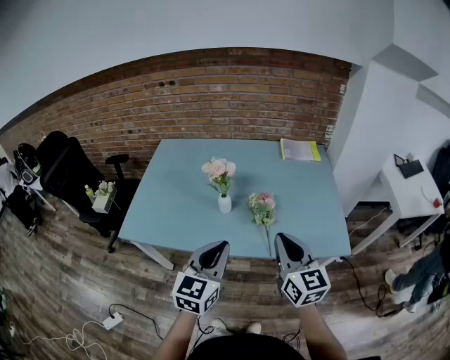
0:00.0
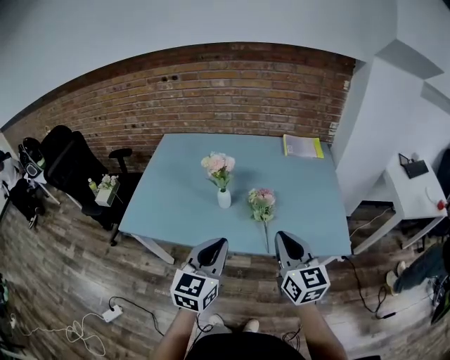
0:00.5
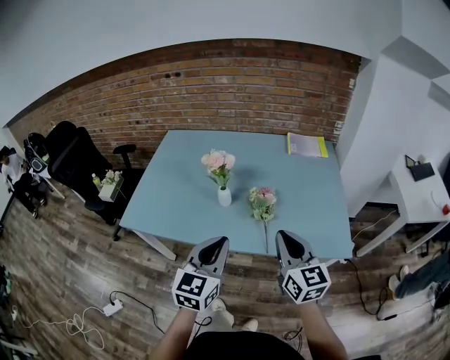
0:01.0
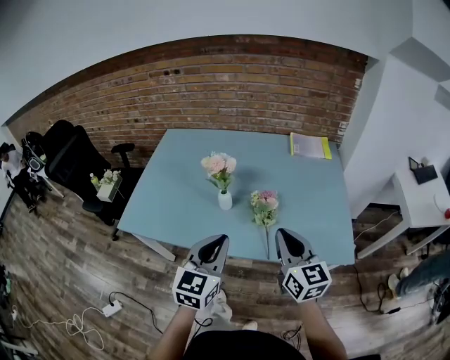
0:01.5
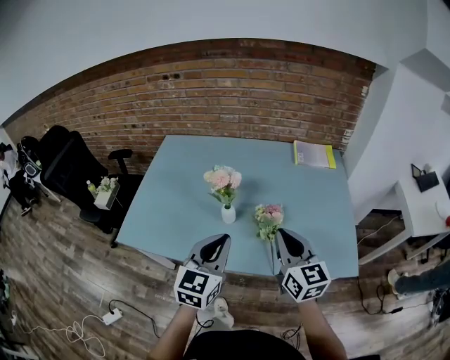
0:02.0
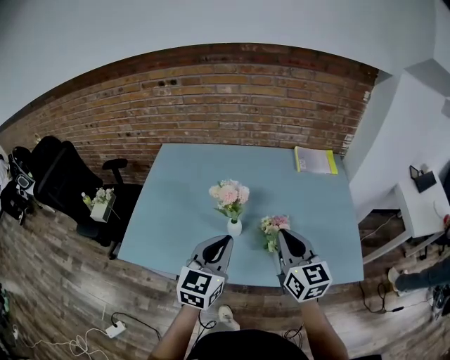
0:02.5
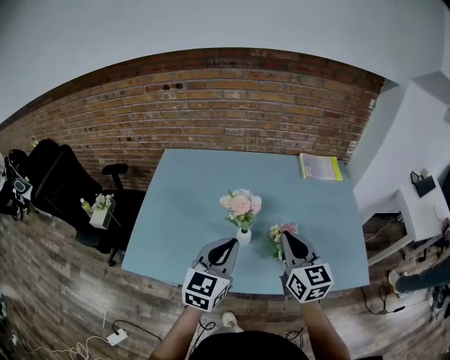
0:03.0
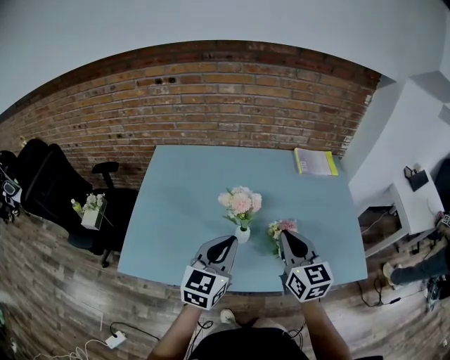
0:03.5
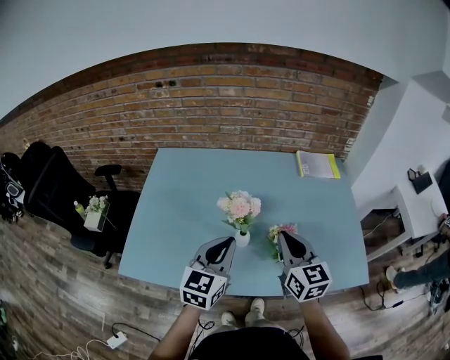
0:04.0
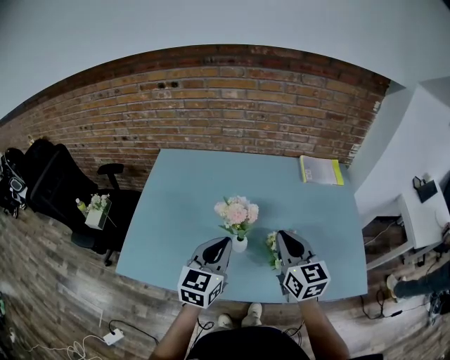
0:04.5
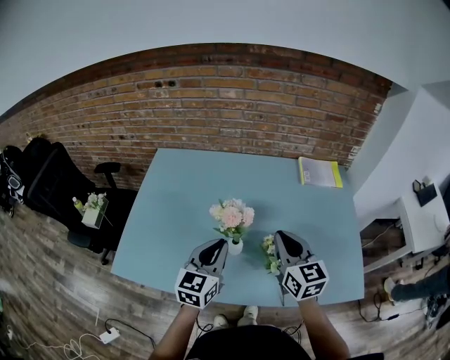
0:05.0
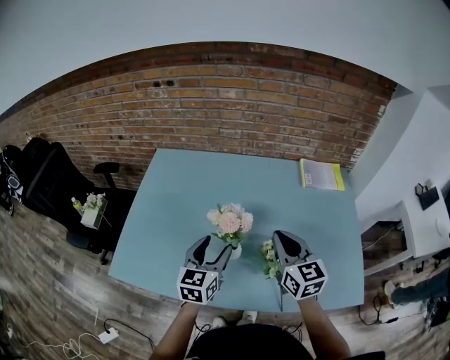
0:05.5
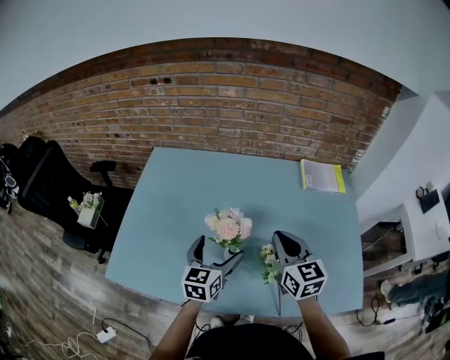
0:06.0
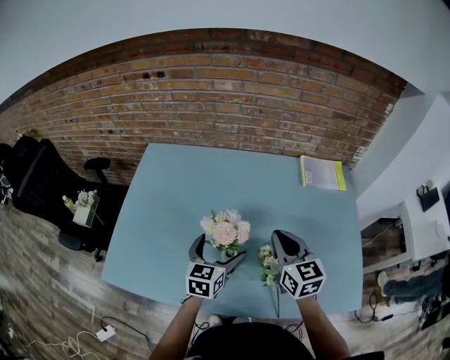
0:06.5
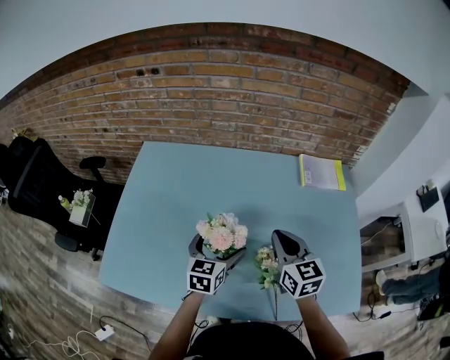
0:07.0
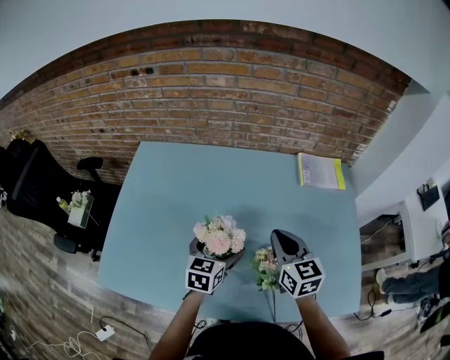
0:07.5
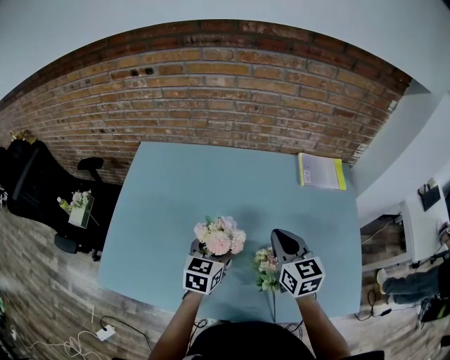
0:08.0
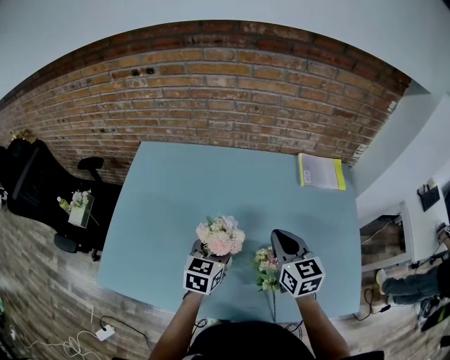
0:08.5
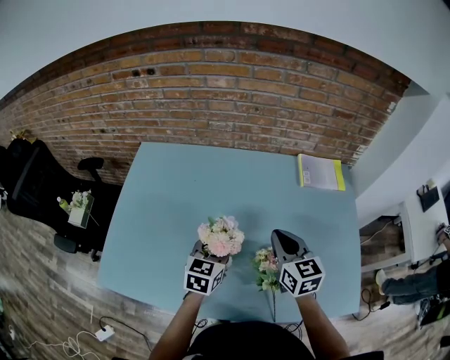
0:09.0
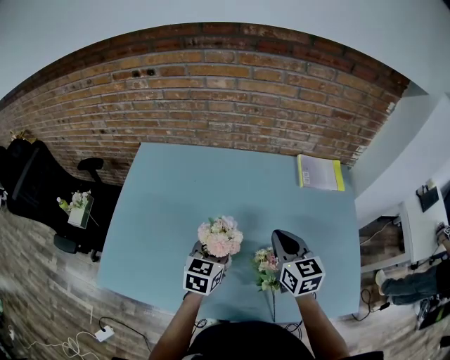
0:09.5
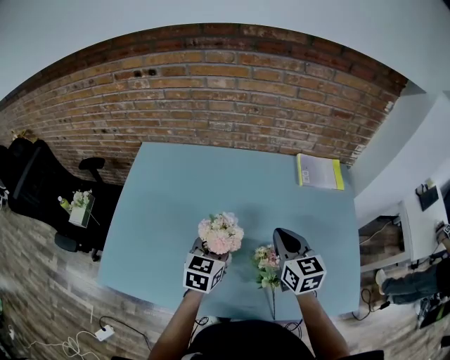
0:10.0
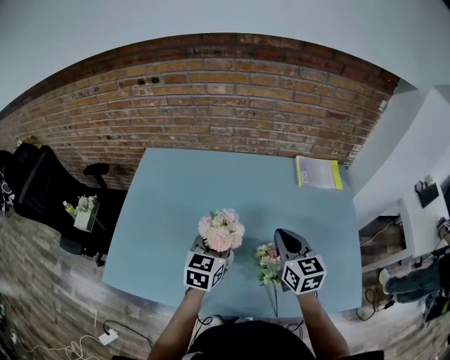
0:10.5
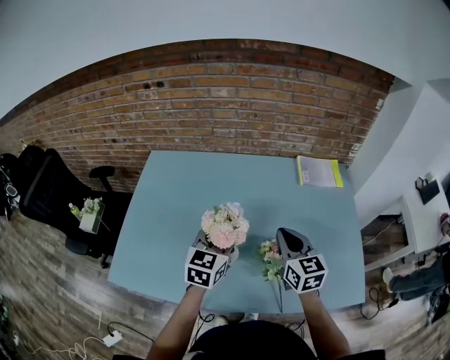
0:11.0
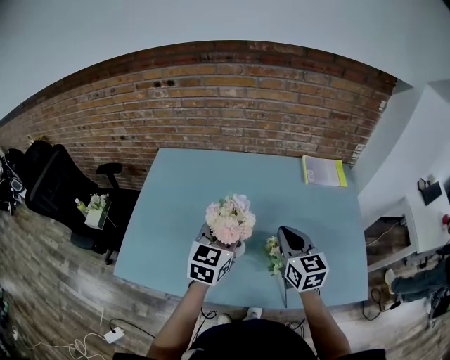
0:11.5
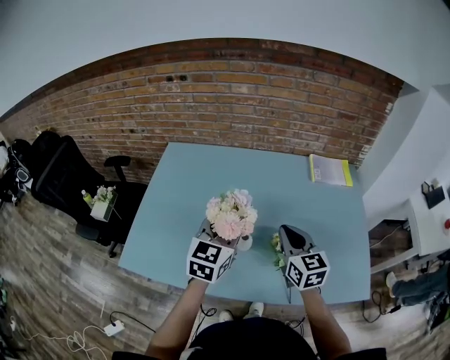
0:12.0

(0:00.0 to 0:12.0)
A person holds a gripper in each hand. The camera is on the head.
0:00.0 - 0:02.0: Both grippers travel together forward, roughly 10 cm.
0:02.0 - 0:04.0: Both grippers move forward and to the left, approximately 15 cm.
0:04.0 - 0:06.0: The left gripper moves forward and downward, some 15 cm, and opens up. Meanwhile the right gripper moves forward, about 10 cm.
0:06.0 - 0:08.0: Both grippers move forward, about 5 cm. The left gripper closes up.
0:08.0 - 0:10.0: The grippers move only a little.
0:10.0 - 0:12.0: The left gripper heads upward and backward, covering roughly 15 cm. The right gripper is displaced backward by some 10 cm.

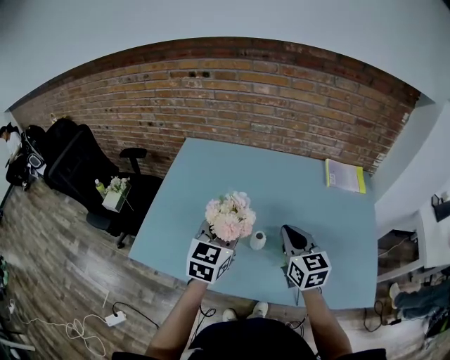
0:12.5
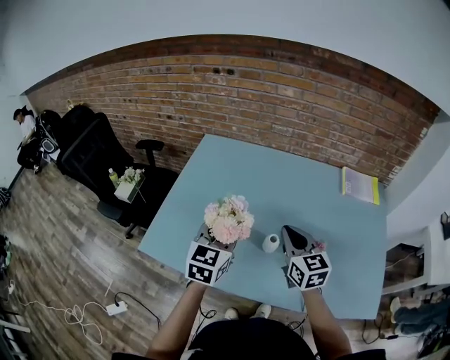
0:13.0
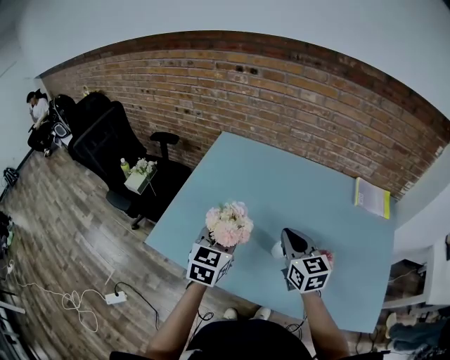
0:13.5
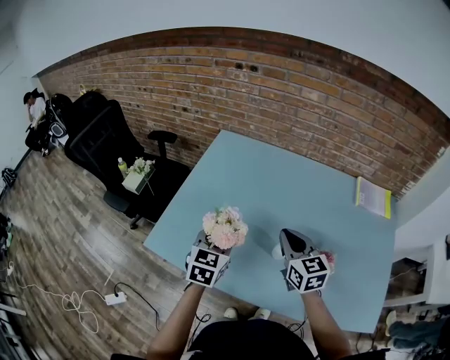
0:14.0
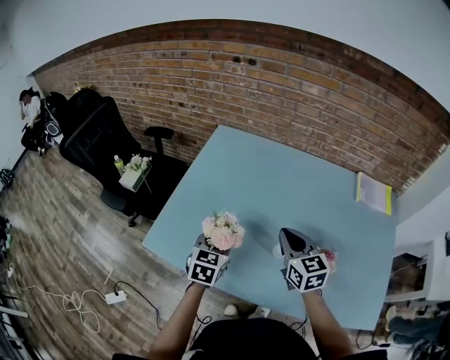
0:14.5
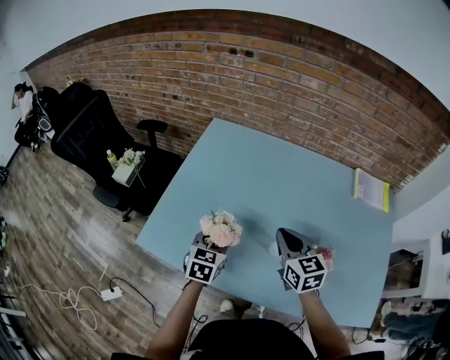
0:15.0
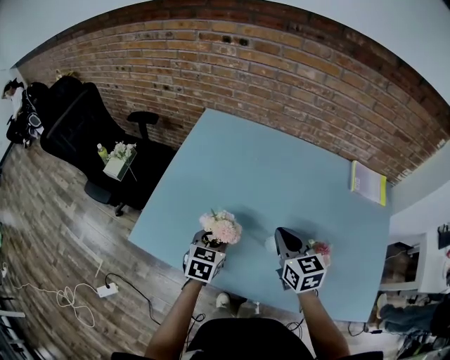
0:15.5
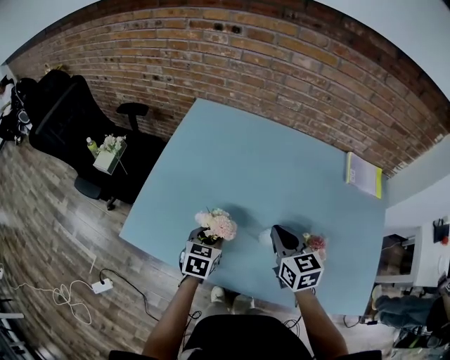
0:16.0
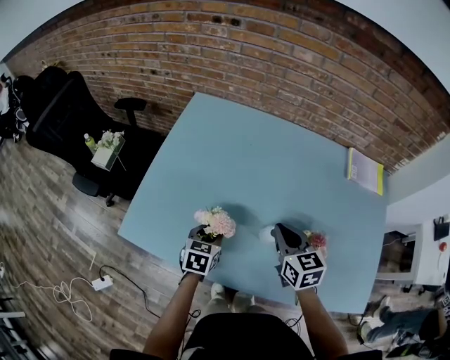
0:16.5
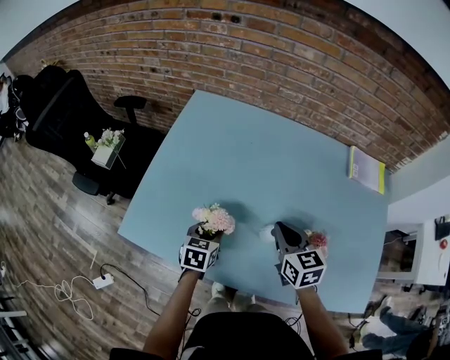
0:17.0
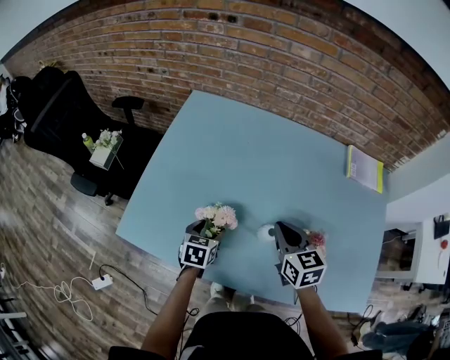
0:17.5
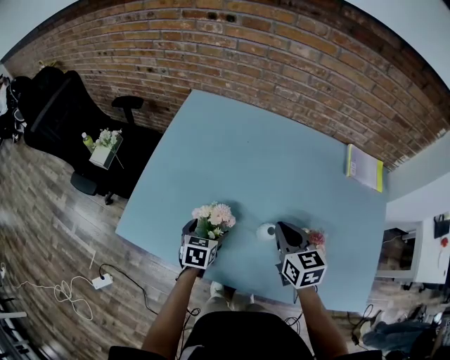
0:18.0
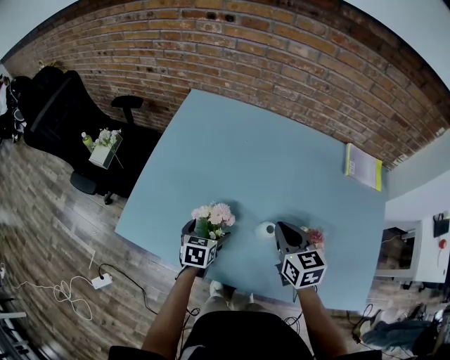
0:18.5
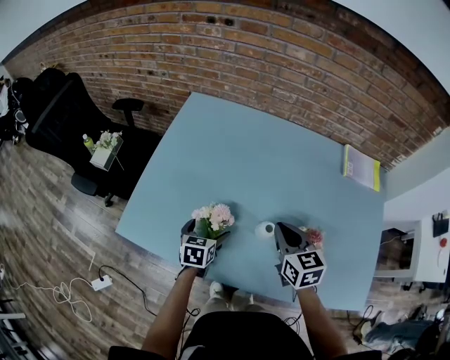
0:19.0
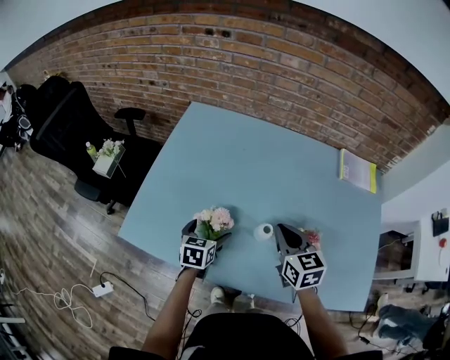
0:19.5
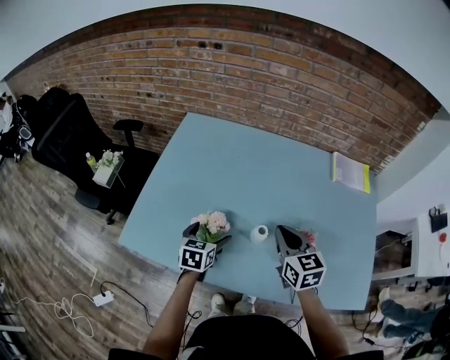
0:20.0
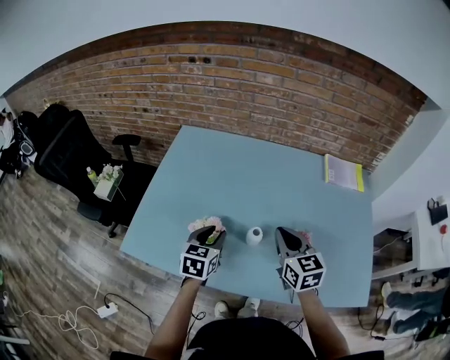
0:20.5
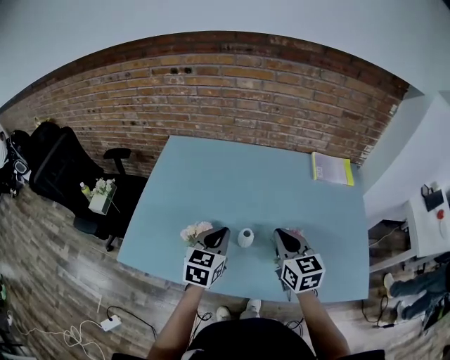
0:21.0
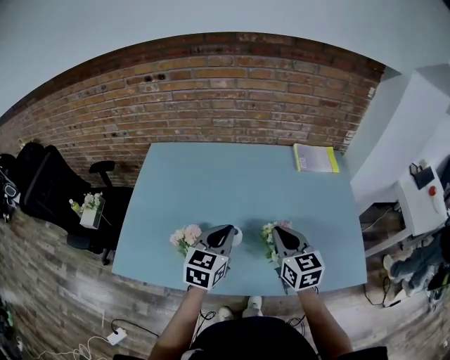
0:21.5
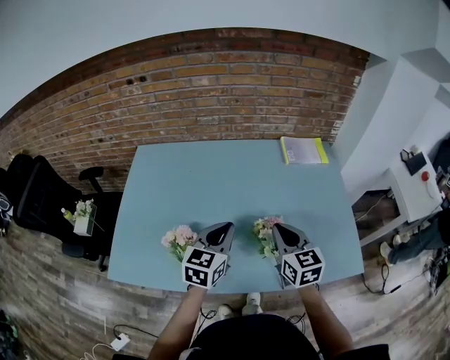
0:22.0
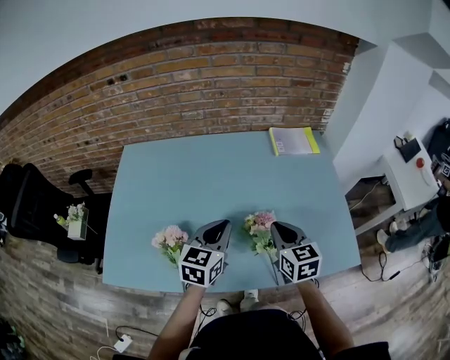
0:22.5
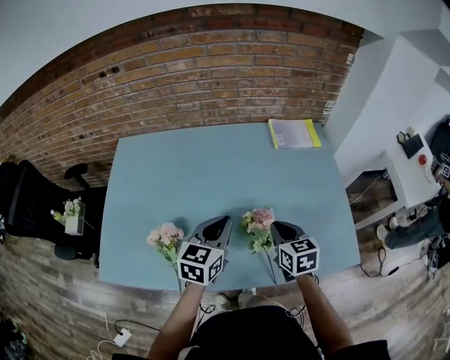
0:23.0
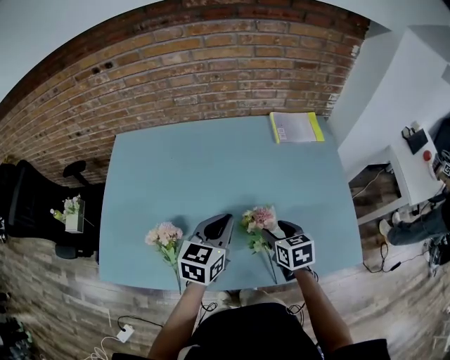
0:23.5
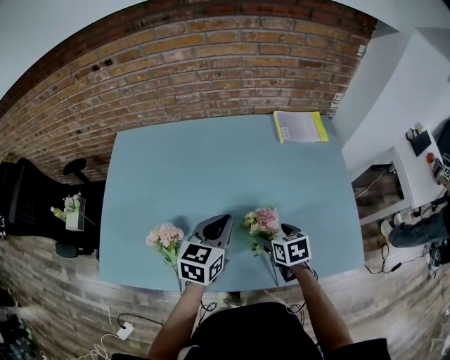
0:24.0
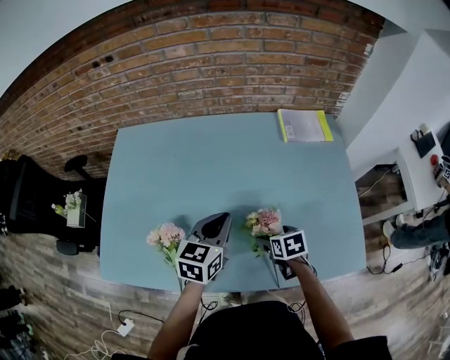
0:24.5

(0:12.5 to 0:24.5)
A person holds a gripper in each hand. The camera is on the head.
0:12.5 - 0:14.5: The right gripper goes approximately 10 cm to the left and forward. The left gripper heads downward and to the left, covering roughly 20 cm, and turns by approximately 20 degrees.
0:14.5 - 0:16.5: The right gripper goes about 5 cm downward, while the left gripper goes roughly 10 cm downward.
0:16.5 - 0:18.5: The left gripper opens.
0:18.5 - 0:20.5: The right gripper moves upward, roughly 5 cm, while the left gripper heads upward, covering roughly 15 cm, and closes.
0:20.5 - 0:22.5: The left gripper moves to the right and upward, about 20 cm, and swivels approximately 20 degrees; the right gripper moves to the right, roughly 15 cm.
0:22.5 - 0:24.5: The left gripper heads forward, covering approximately 5 cm; the right gripper travels downward by approximately 20 cm, angles its fingers downward, by some 30 degrees, and opens up.

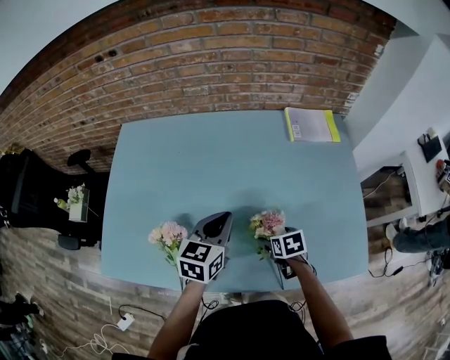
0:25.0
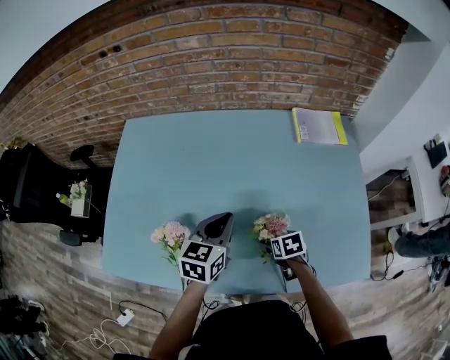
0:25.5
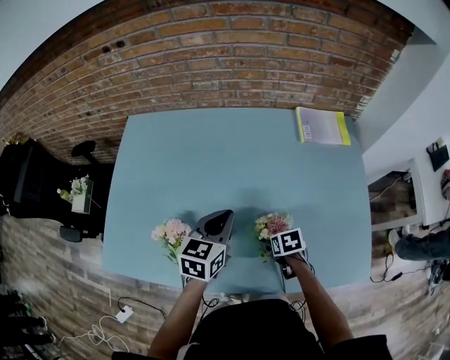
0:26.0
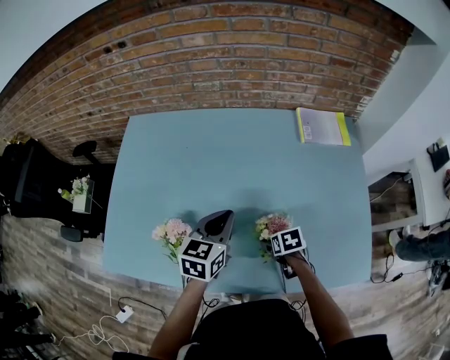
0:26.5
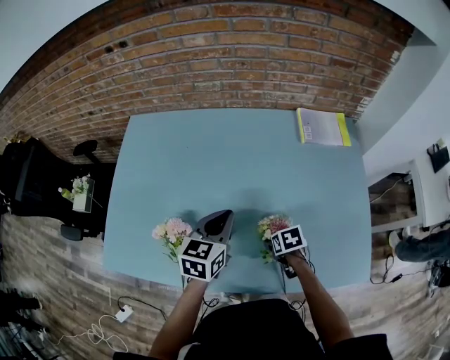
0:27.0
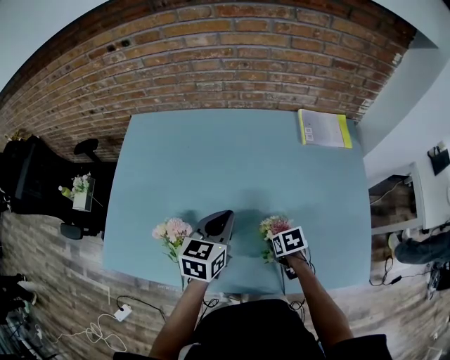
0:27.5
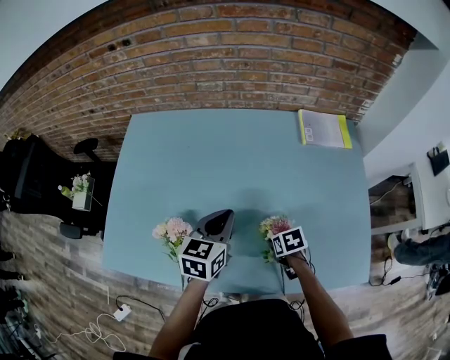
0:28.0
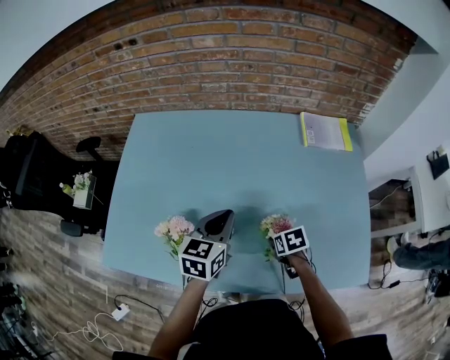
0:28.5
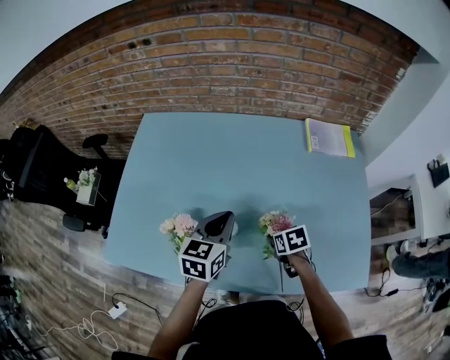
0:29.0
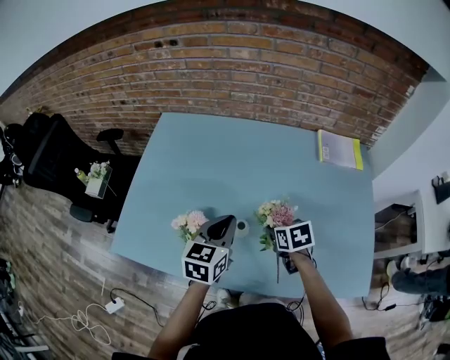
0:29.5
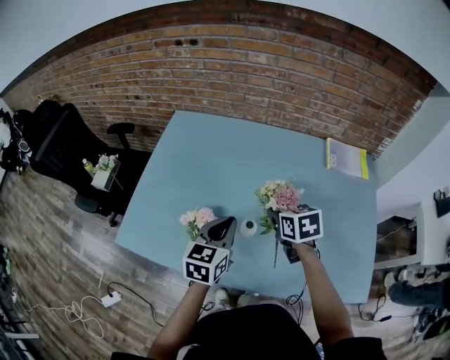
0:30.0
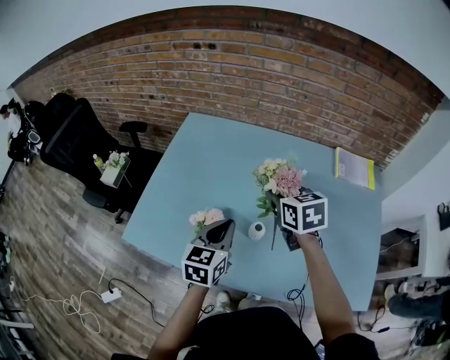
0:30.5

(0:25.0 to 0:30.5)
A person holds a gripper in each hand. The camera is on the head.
0:25.0 - 0:27.0: There are only small adjustments of the grippers.
0:27.0 - 0:28.5: The right gripper closes.
0:28.5 - 0:30.5: The left gripper travels to the left by about 10 cm; the right gripper is displaced upward, to the left and forward by about 35 cm, and tilts its fingers approximately 30 degrees upward.
